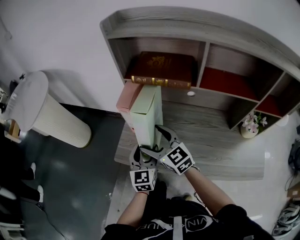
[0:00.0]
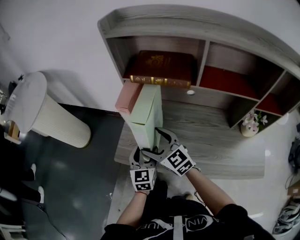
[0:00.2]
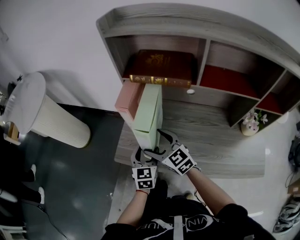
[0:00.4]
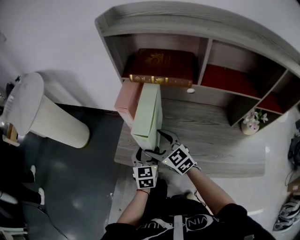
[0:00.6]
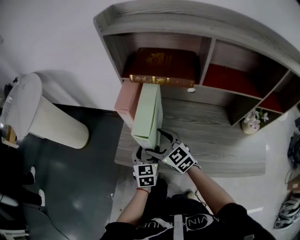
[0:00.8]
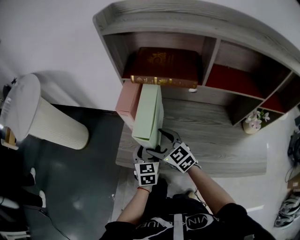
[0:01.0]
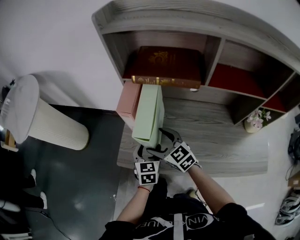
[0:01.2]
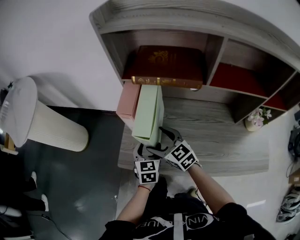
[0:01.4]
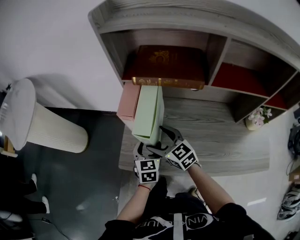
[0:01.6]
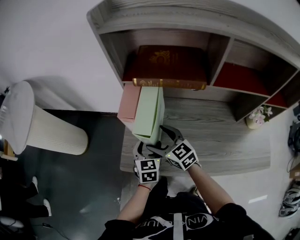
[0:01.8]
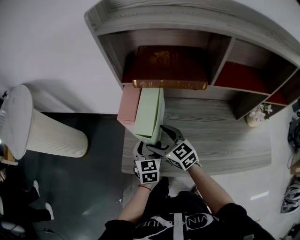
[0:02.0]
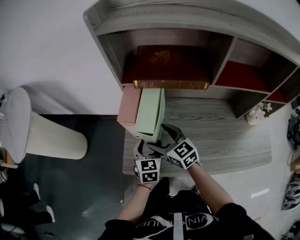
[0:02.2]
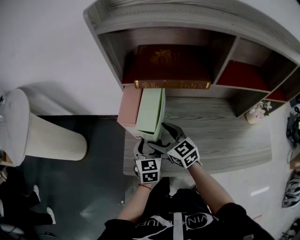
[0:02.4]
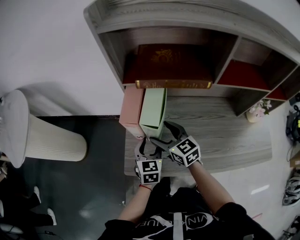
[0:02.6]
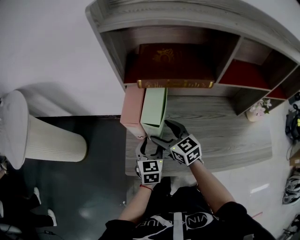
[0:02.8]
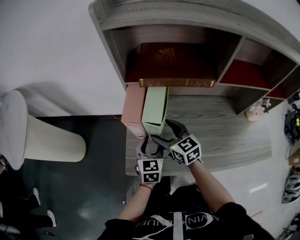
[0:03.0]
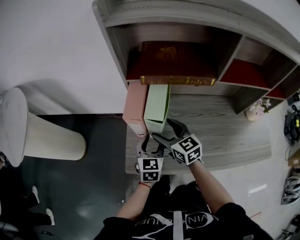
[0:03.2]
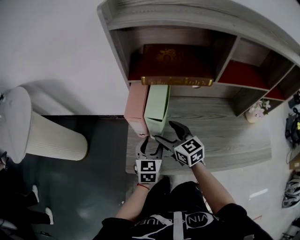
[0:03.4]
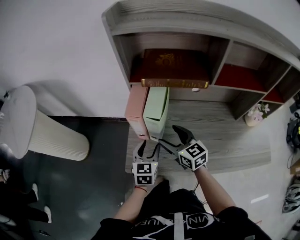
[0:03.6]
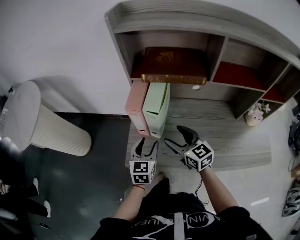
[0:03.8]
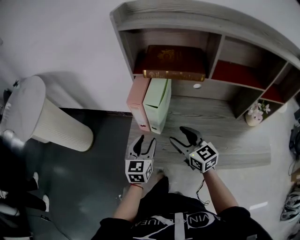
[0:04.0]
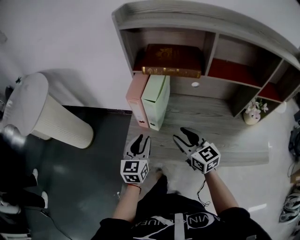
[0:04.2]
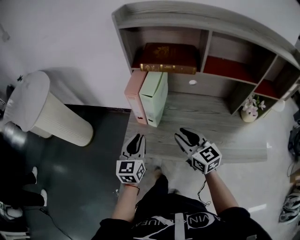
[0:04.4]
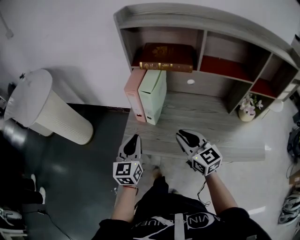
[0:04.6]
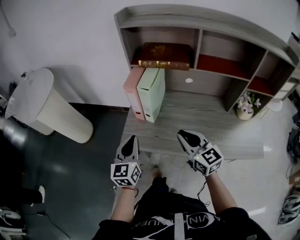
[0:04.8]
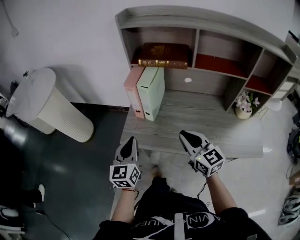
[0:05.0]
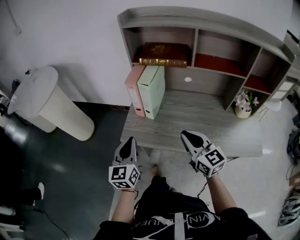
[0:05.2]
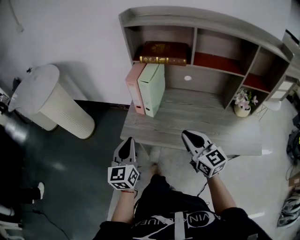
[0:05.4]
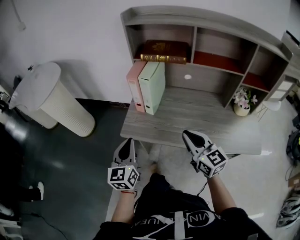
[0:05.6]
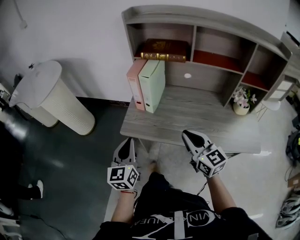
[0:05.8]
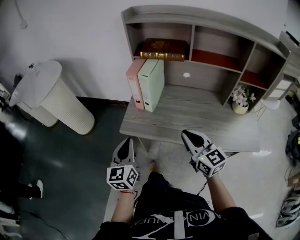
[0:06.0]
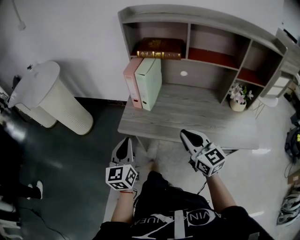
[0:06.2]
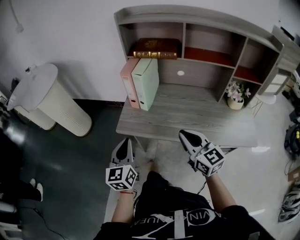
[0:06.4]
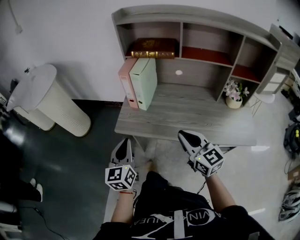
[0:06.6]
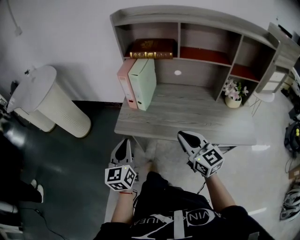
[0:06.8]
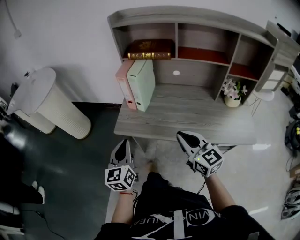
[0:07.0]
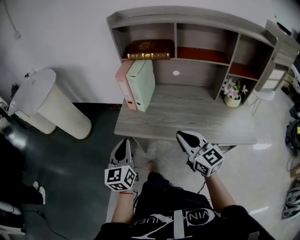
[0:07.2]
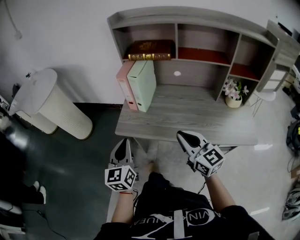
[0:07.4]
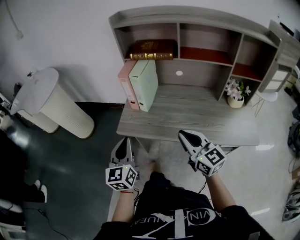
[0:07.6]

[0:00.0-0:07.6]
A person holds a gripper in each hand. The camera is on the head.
0.0 to 1.6 s: Both grippers move downward and forward, about 10 cm.
1.6 to 3.0 s: The right gripper heads forward, covering roughly 5 cm.
3.0 to 4.6 s: The left gripper shifts some 20 cm backward, upward and to the left, changes its angle by about 20 degrees, and closes up. The right gripper goes roughly 20 cm backward and upward, and closes its fingers.
4.6 to 6.0 s: The two grippers go roughly 15 cm backward.
6.0 to 7.6 s: The grippers stay close to where they were, moving slightly.

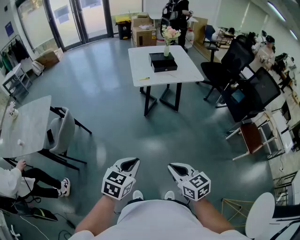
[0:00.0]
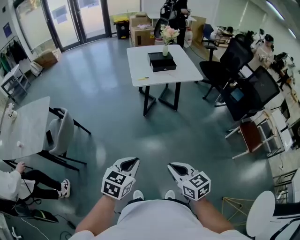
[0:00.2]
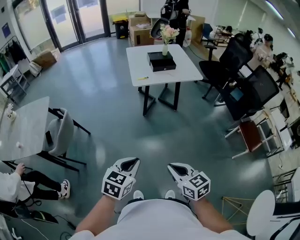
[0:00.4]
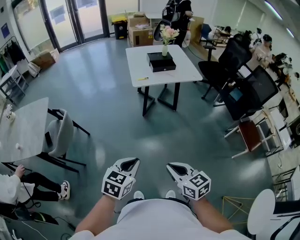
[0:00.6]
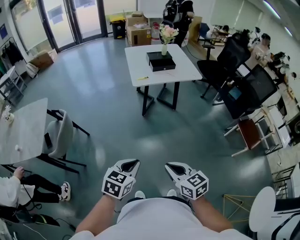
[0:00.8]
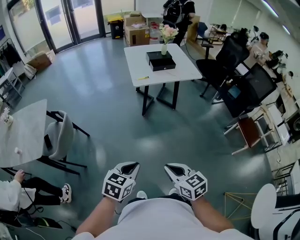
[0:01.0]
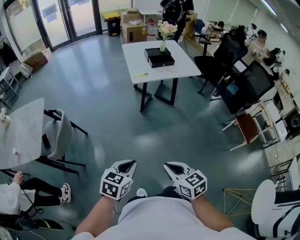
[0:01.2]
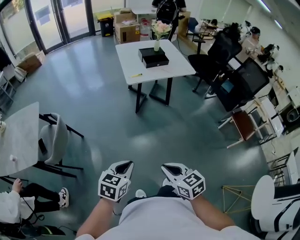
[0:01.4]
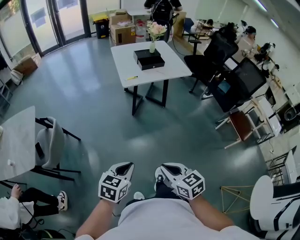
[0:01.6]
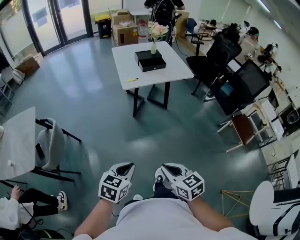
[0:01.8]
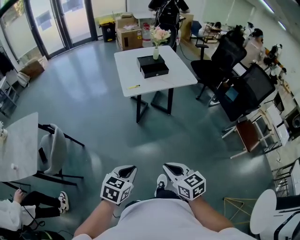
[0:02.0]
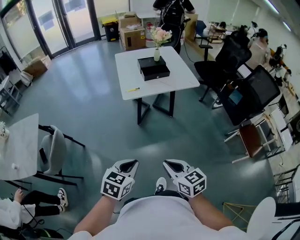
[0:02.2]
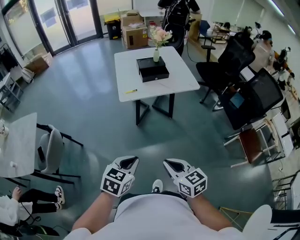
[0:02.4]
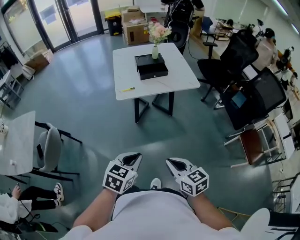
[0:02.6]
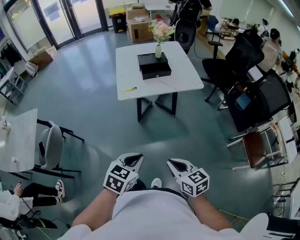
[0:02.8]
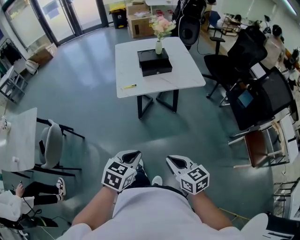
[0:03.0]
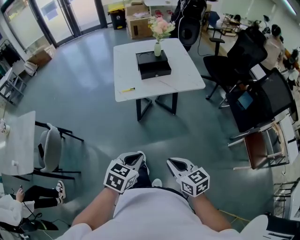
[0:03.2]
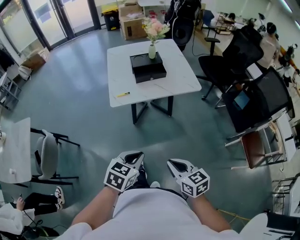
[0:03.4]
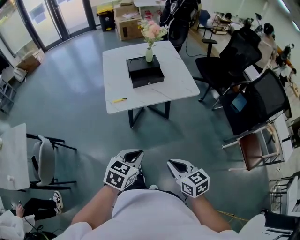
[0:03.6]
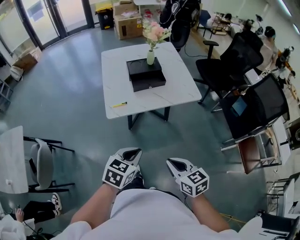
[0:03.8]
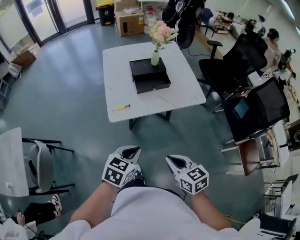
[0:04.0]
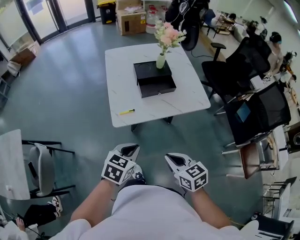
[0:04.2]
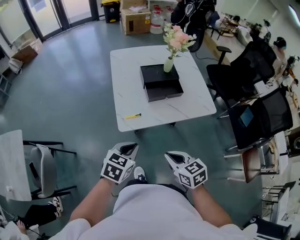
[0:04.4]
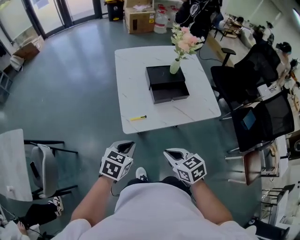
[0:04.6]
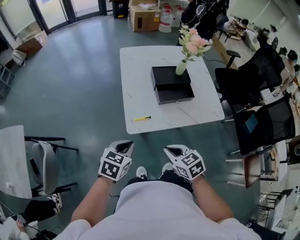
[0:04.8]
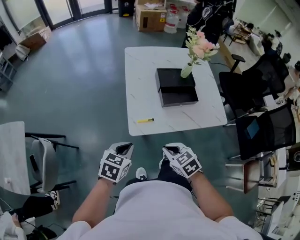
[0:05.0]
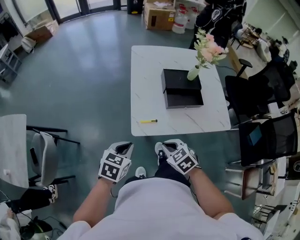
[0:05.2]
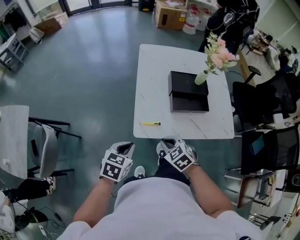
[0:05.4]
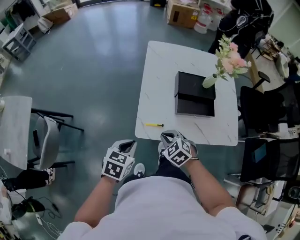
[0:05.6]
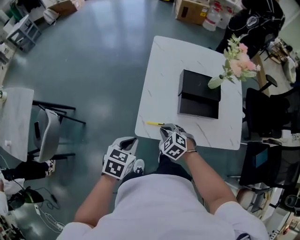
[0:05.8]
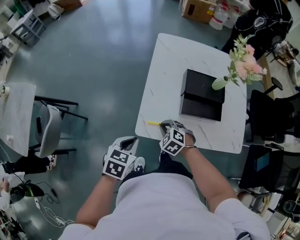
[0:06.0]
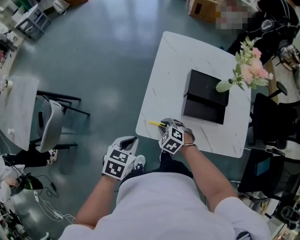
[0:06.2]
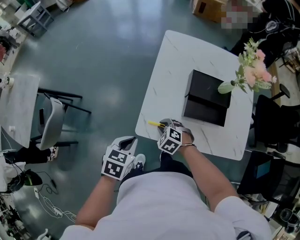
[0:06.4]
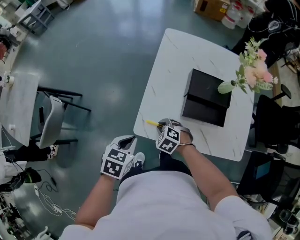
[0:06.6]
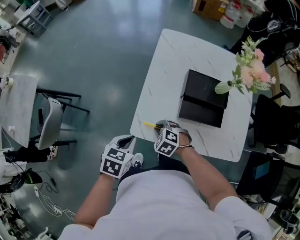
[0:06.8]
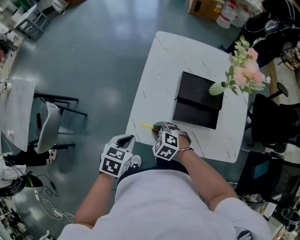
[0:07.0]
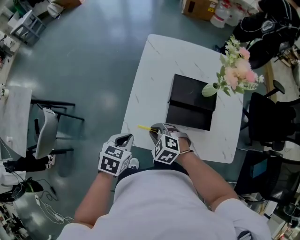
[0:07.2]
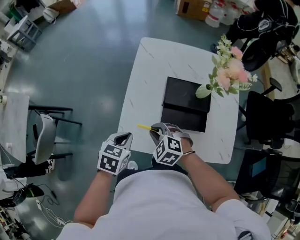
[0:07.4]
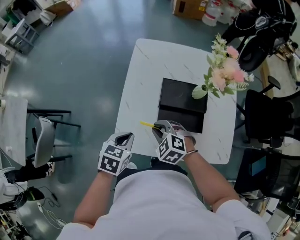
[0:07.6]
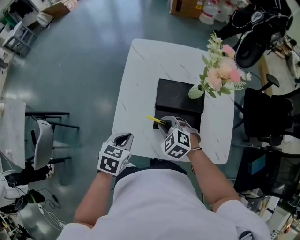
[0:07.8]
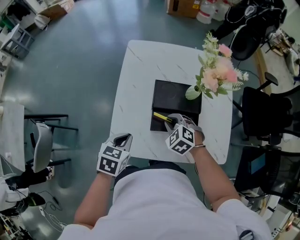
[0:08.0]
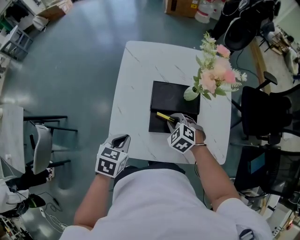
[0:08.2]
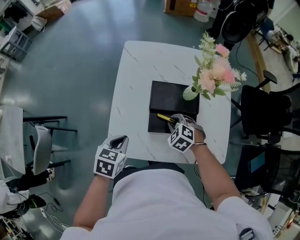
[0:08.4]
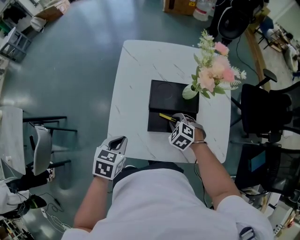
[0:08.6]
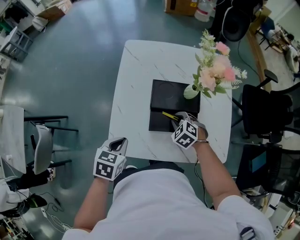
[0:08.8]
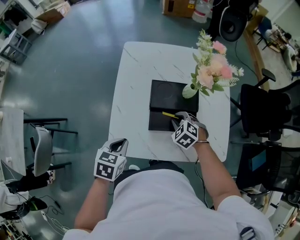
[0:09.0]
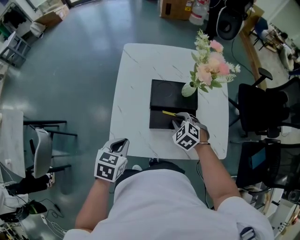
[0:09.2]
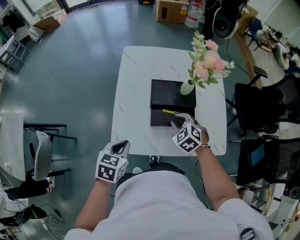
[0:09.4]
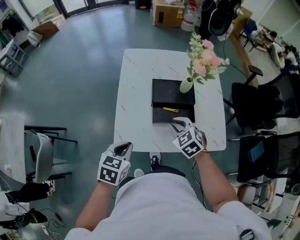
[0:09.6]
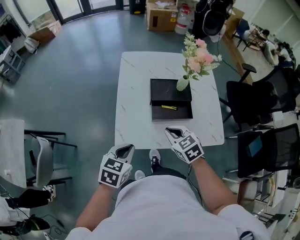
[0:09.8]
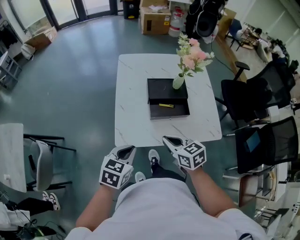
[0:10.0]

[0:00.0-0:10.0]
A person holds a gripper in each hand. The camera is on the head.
0.0 to 1.4 s: Both grippers move to the left, about 10 cm.
1.4 to 2.8 s: Both grippers move forward and to the right, roughly 30 cm.
2.8 to 4.2 s: The two grippers go roughly 30 cm forward.
4.2 to 5.8 s: The right gripper travels forward, downward and to the left by roughly 35 cm, and rolls counterclockwise, seen from behind, by about 50 degrees, while the left gripper goes roughly 20 cm forward and to the left, and changes its angle by some 30 degrees.
5.8 to 7.2 s: The left gripper is displaced to the right and forward by about 10 cm; the right gripper moves some 5 cm.
7.2 to 8.6 s: The left gripper heads to the right, covering some 5 cm. The right gripper is displaced to the right and forward by roughly 20 cm.
8.6 to 10.0 s: The right gripper travels backward and upward by roughly 25 cm, and rotates around the line of its fingers by roughly 50 degrees, clockwise from behind. The left gripper moves backward and upward, about 15 cm.

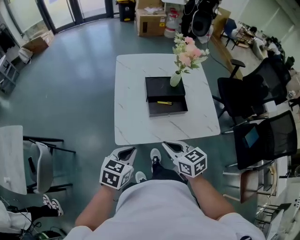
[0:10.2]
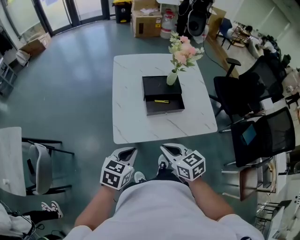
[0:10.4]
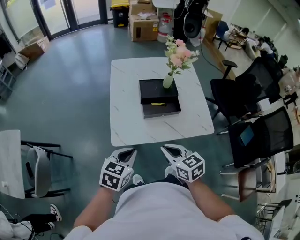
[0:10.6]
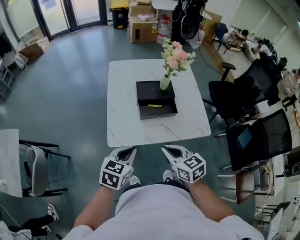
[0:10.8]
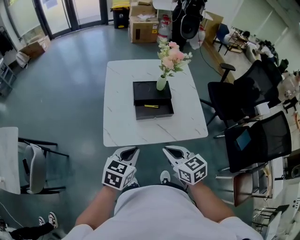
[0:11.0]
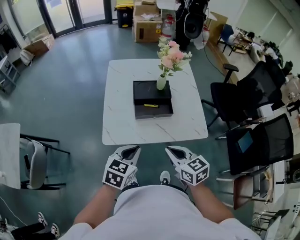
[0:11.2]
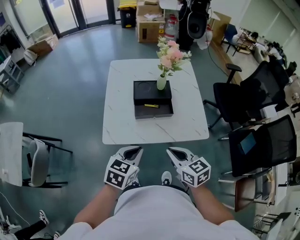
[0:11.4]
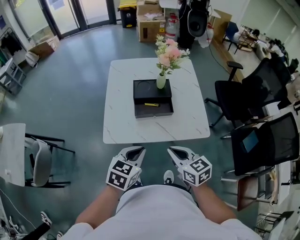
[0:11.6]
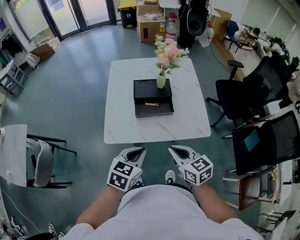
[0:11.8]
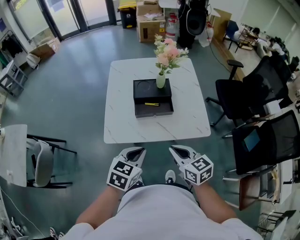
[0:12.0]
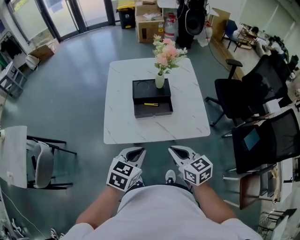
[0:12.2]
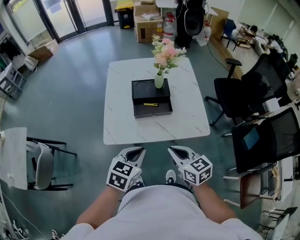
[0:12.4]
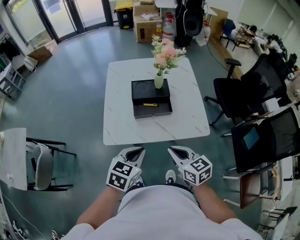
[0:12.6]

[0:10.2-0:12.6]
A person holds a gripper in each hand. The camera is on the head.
10.2 to 11.4 s: The two grippers go about 10 cm to the right.
11.4 to 12.6 s: The grippers move only a little.

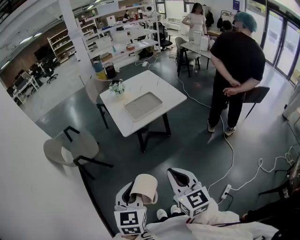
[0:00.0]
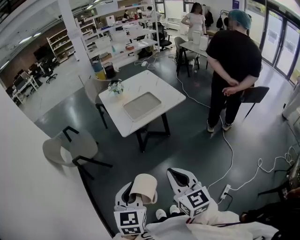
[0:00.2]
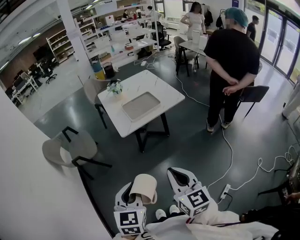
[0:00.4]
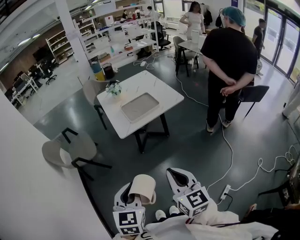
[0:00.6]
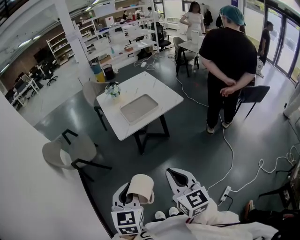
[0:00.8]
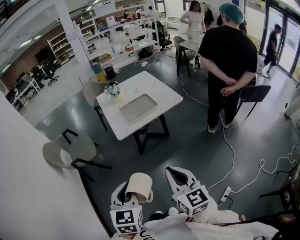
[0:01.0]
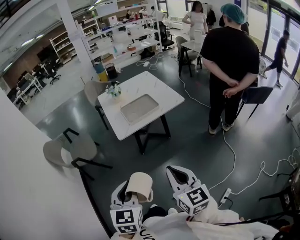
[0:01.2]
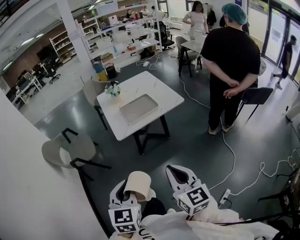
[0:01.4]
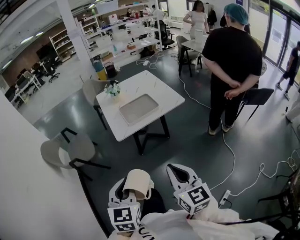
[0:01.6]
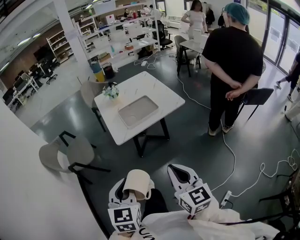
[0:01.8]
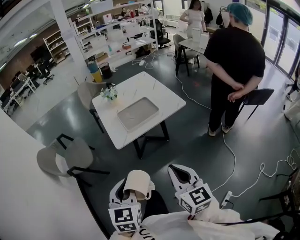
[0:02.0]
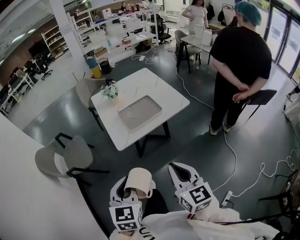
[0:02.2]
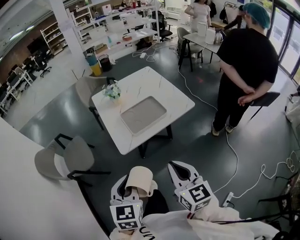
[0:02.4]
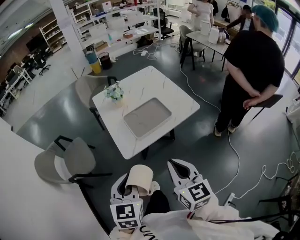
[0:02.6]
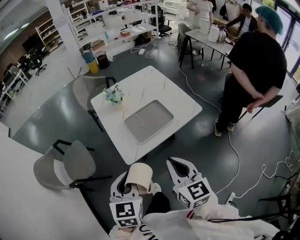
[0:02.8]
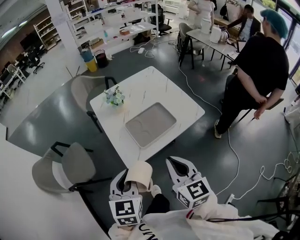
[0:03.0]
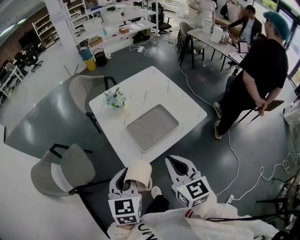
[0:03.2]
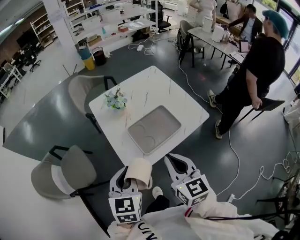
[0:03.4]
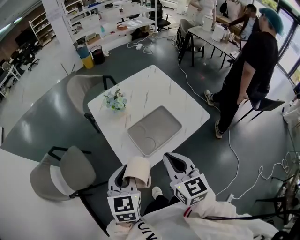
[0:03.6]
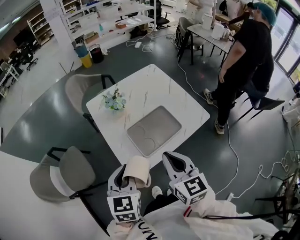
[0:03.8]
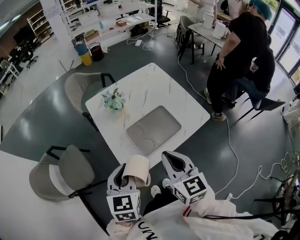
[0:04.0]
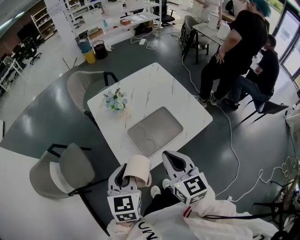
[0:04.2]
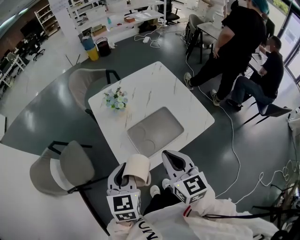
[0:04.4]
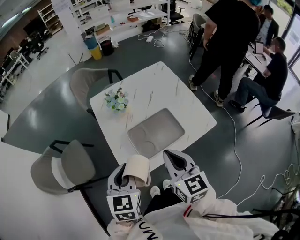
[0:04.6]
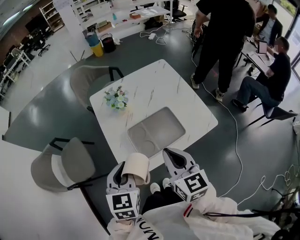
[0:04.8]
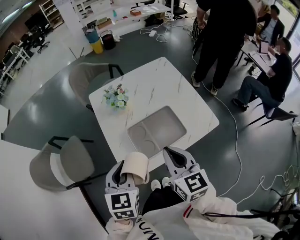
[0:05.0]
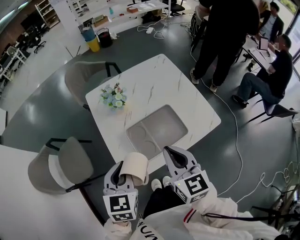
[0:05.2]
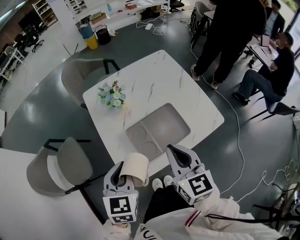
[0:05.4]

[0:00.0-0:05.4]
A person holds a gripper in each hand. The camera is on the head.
0.0 to 1.4 s: The two grippers go roughly 5 cm to the right.
1.4 to 2.8 s: Both grippers move forward, roughly 30 cm.
2.8 to 4.0 s: Both grippers travel together forward, about 15 cm.
4.0 to 5.4 s: The grippers both shift forward by approximately 10 cm.
